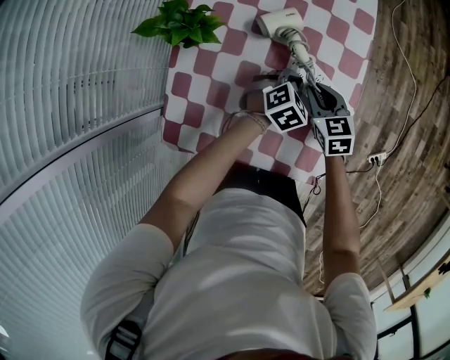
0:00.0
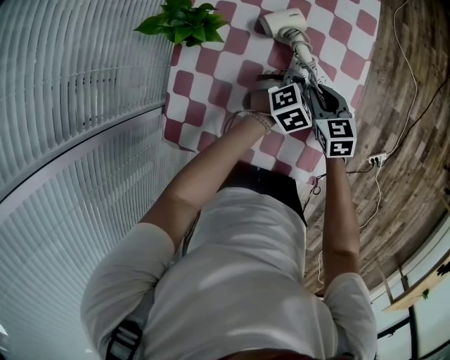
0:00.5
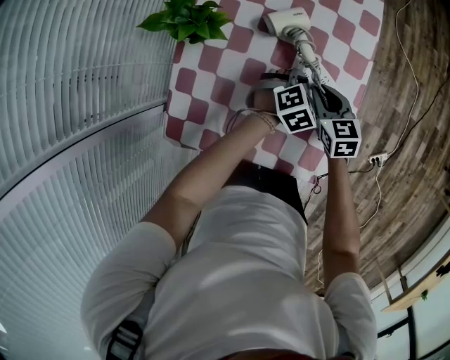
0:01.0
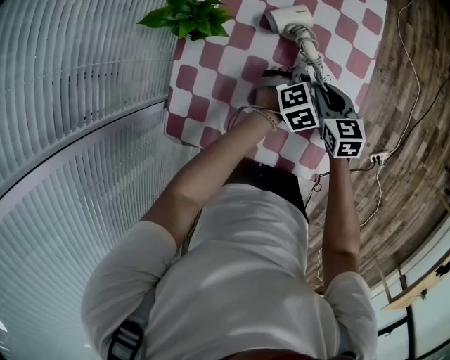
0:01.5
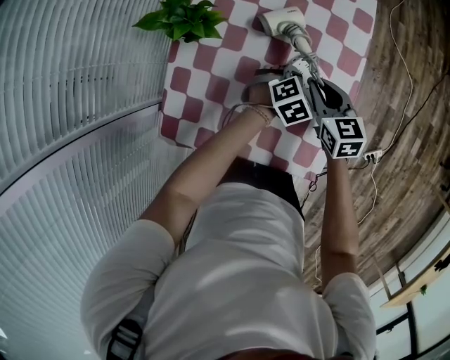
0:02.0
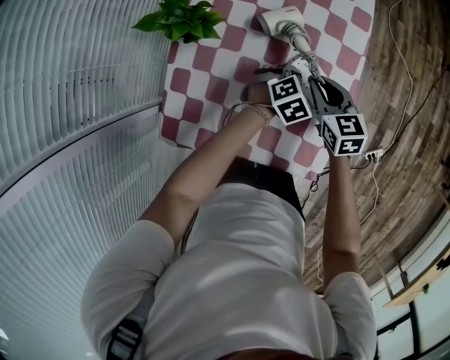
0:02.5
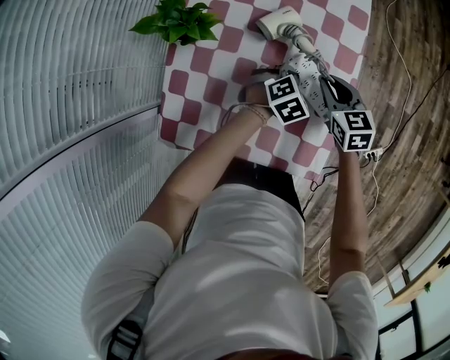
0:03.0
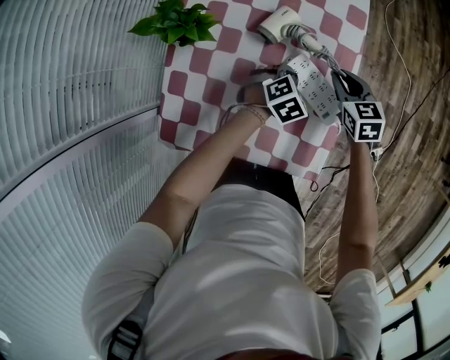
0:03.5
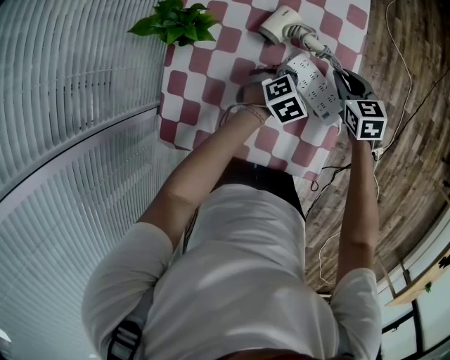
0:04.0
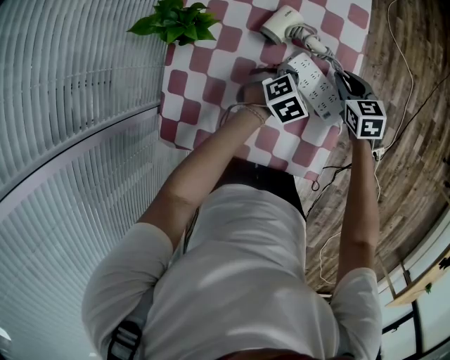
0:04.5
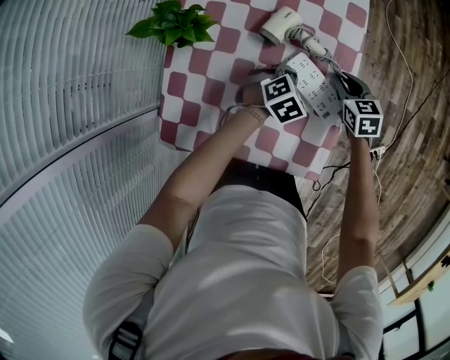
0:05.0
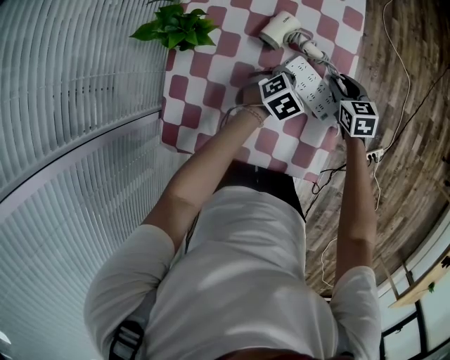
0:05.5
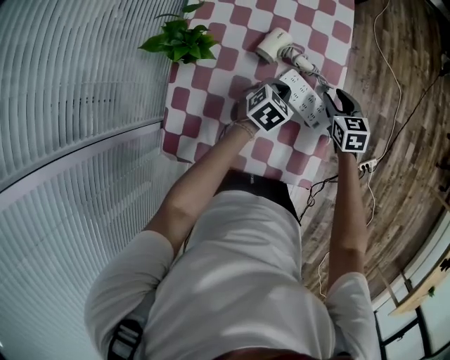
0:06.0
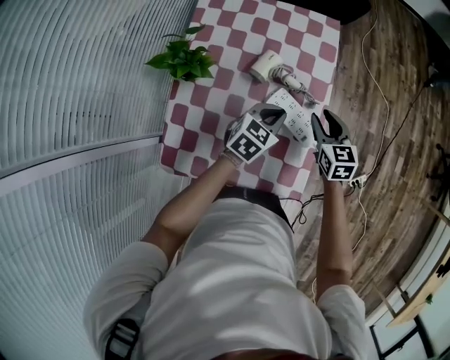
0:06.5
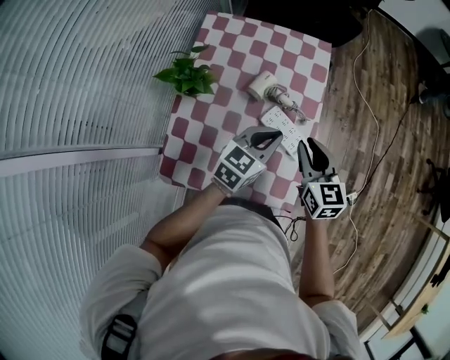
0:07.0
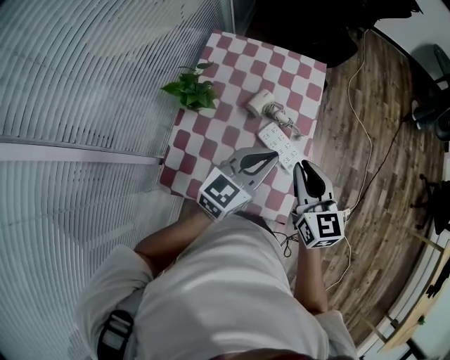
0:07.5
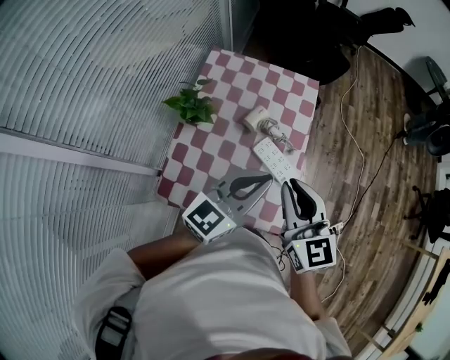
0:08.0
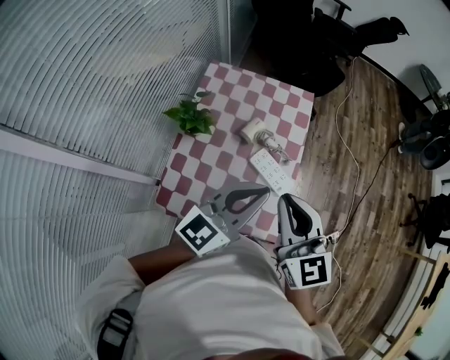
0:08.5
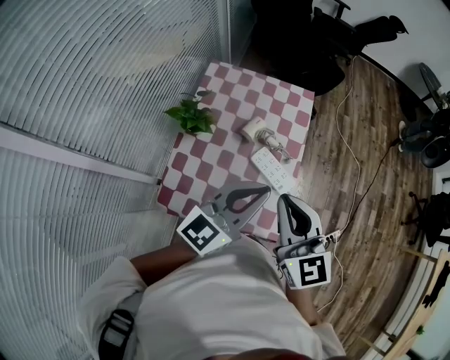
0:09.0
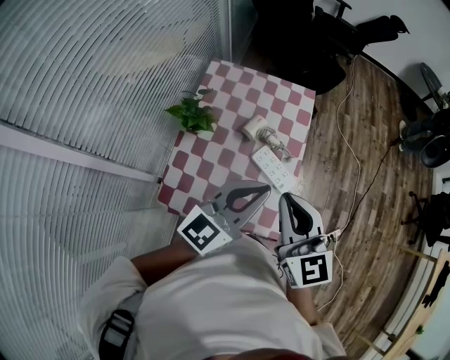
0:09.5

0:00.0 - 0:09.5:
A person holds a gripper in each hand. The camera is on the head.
0:00.0 - 0:02.0: The right gripper shifts roughly 5 cm upward.
0:02.0 - 0:04.0: The right gripper moves to the right and forward, about 10 cm.
0:04.0 - 0:05.5: The grippers stay close to where they were, moving slightly.
0:05.5 - 0:07.5: The left gripper is displaced upward by approximately 35 cm, and tips its fingers upward by approximately 50 degrees; the right gripper moves upward and backward, approximately 35 cm, and turns by about 30 degrees.
0:07.5 - 0:09.5: The two grippers go about 15 cm upward and backward.

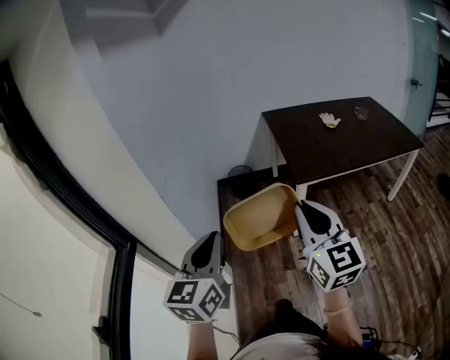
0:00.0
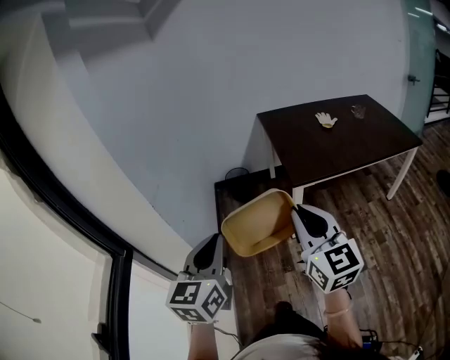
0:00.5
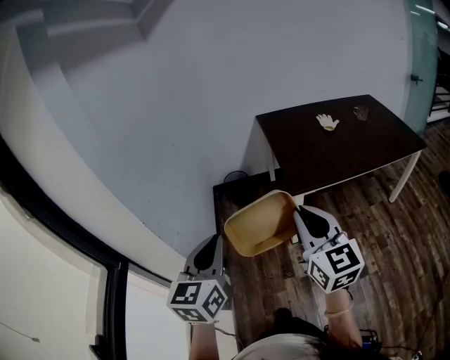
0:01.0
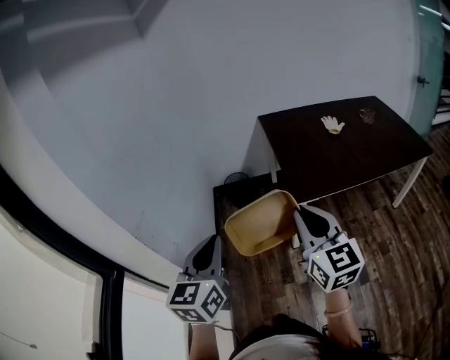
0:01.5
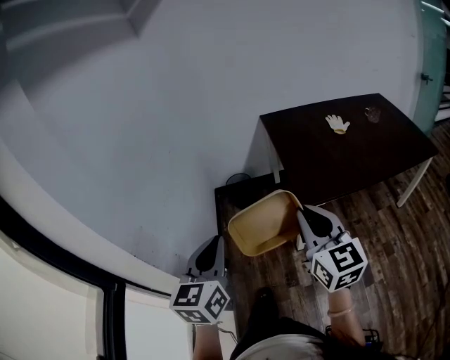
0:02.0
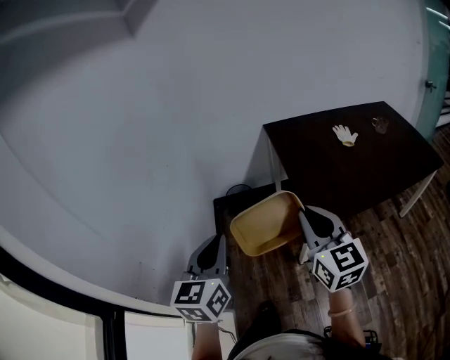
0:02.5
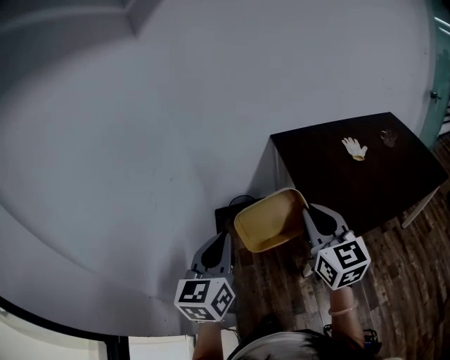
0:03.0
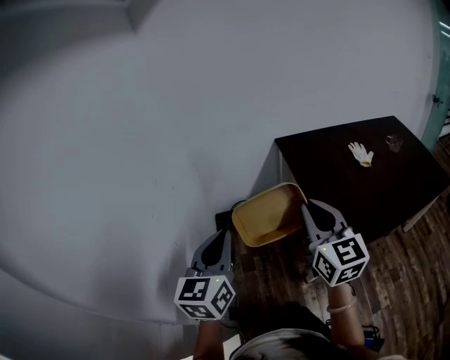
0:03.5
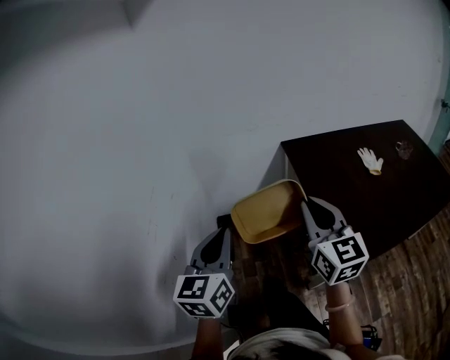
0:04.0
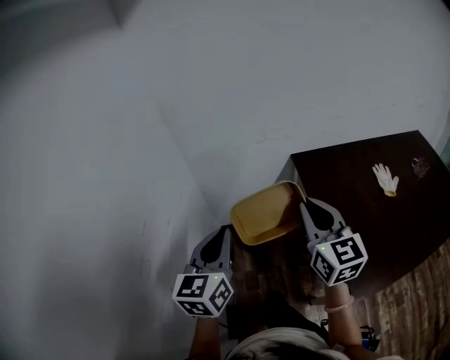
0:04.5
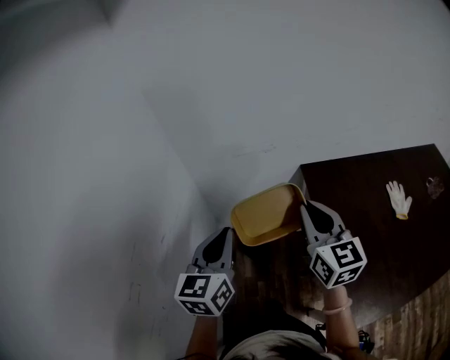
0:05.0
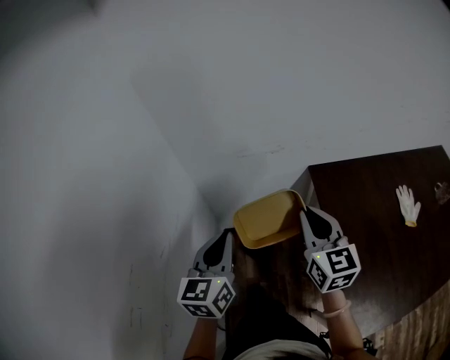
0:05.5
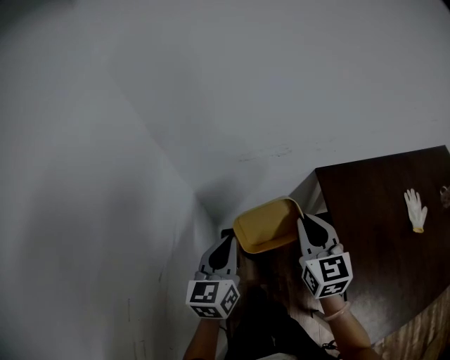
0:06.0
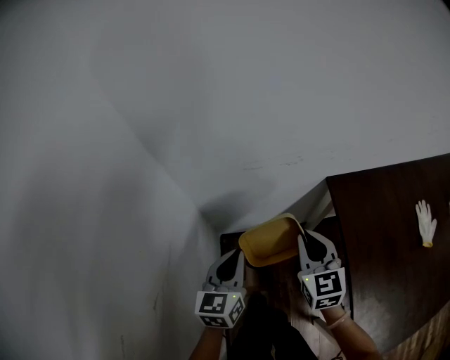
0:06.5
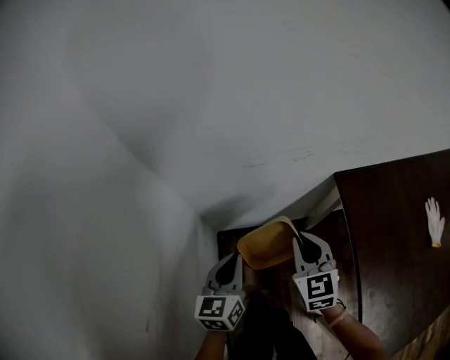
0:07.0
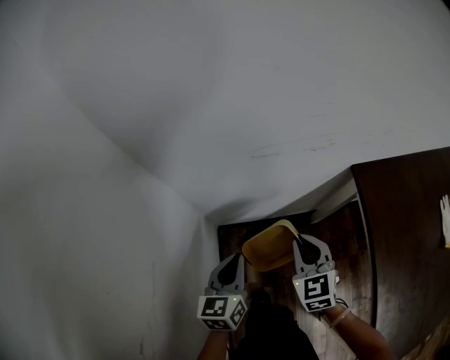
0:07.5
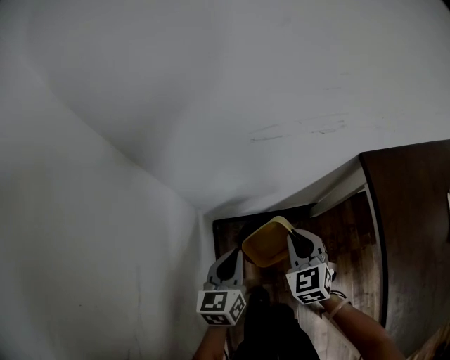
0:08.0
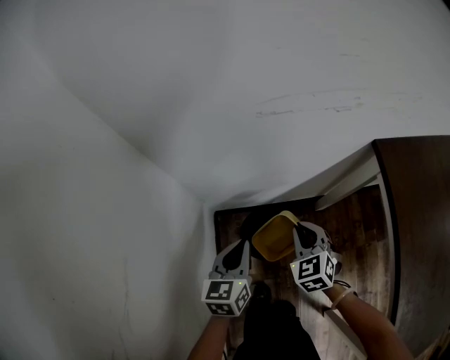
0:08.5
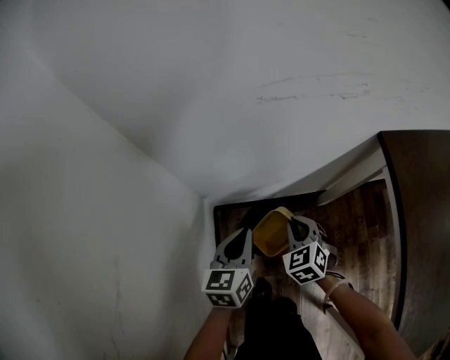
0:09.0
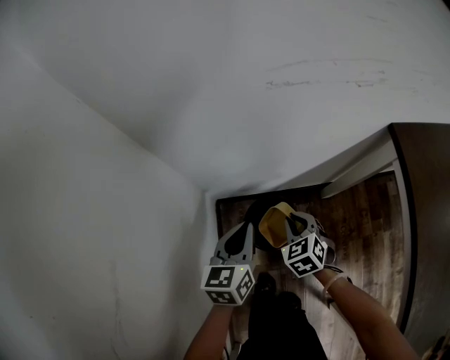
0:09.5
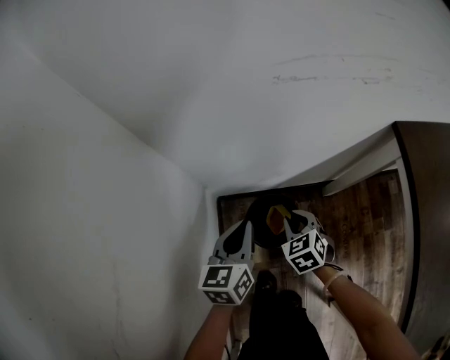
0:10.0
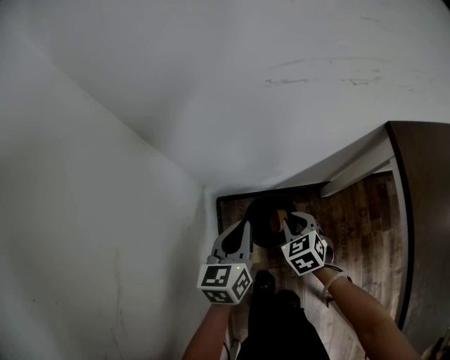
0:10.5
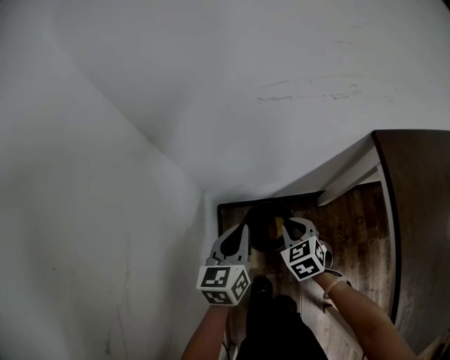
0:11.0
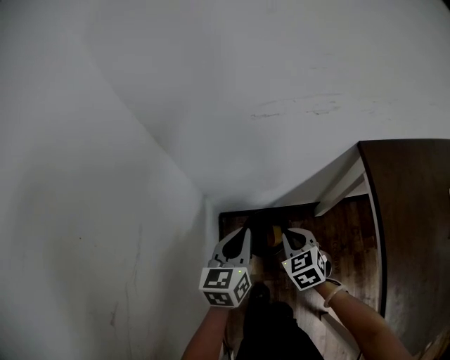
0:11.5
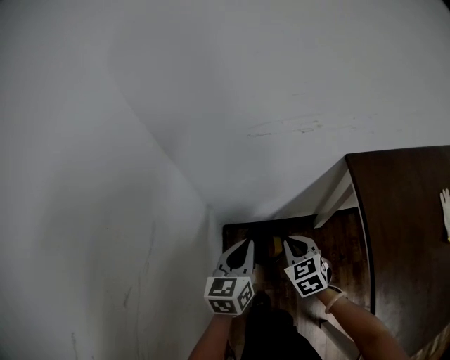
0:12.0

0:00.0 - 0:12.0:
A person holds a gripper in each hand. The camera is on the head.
0:00.0 - 0:02.0: The two grippers go approximately 20 cm forward.
0:02.0 - 0:04.0: Both grippers travel together forward, approximately 40 cm.
0:04.0 - 0:06.0: Both grippers are carried forward, roughly 40 cm.
0:06.0 - 0:08.0: The left gripper travels downward and forward by roughly 35 cm, while the right gripper moves downward, roughly 35 cm, and turns by about 30 degrees.
0:08.0 - 0:10.0: The right gripper heads downward, covering roughly 20 cm; the left gripper travels downward by roughly 10 cm.
0:10.0 - 0:12.0: Both grippers move upward and backward, roughly 20 cm.

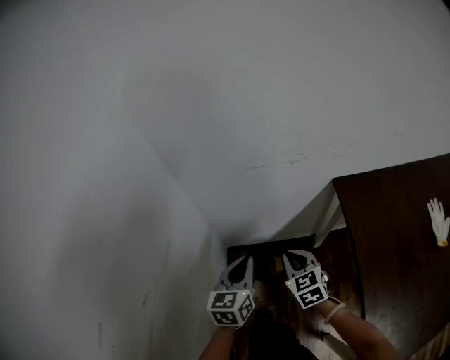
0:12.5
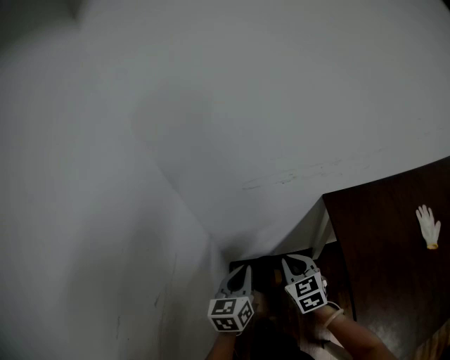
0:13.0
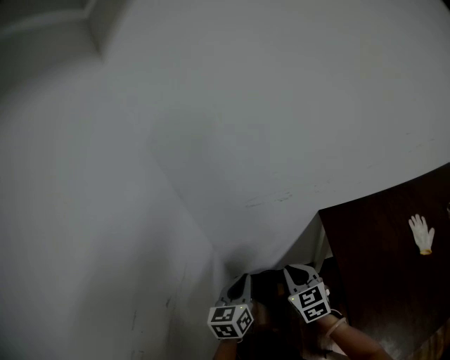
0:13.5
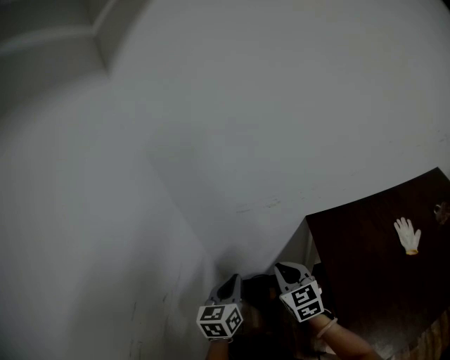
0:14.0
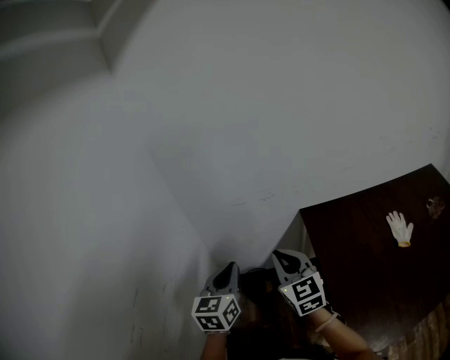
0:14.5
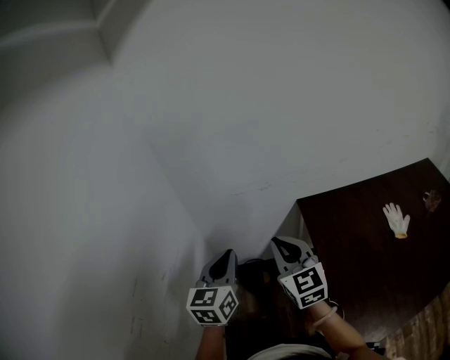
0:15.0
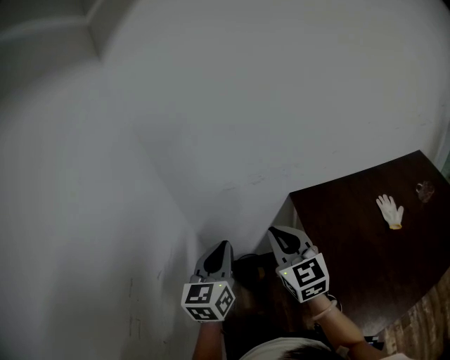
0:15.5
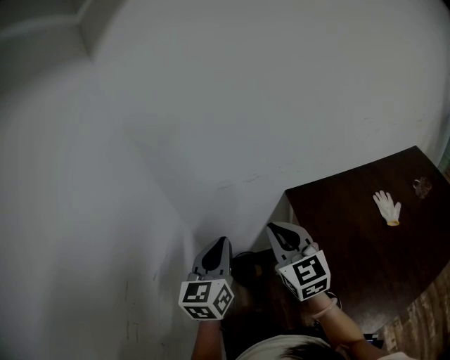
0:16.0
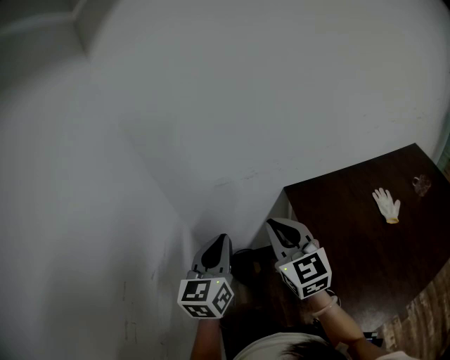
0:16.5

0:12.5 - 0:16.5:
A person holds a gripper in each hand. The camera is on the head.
0:12.5 - 0:14.5: Both grippers move upward and backward, roughly 30 cm. The right gripper changes its angle by some 30 degrees.
0:14.5 - 0:16.5: Both grippers travel together upward, about 5 cm.

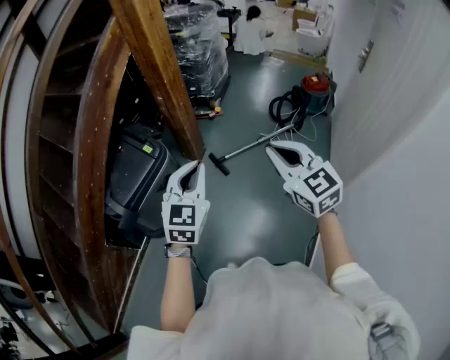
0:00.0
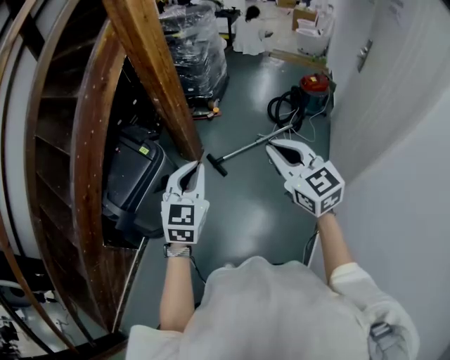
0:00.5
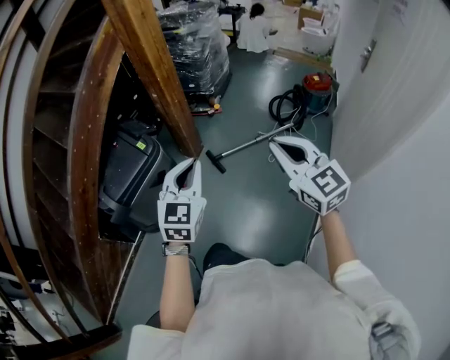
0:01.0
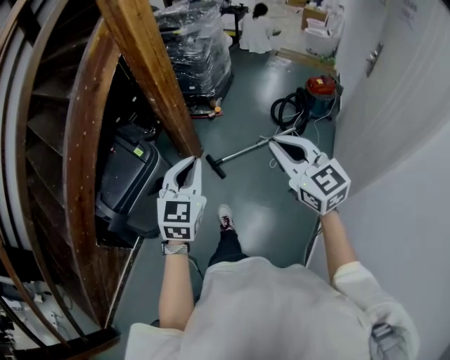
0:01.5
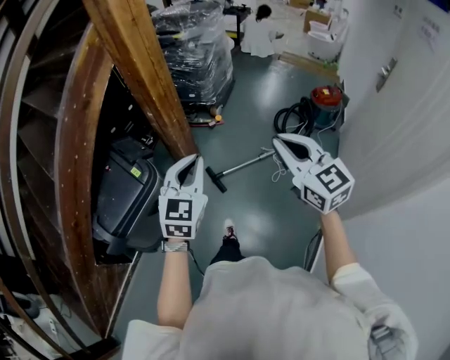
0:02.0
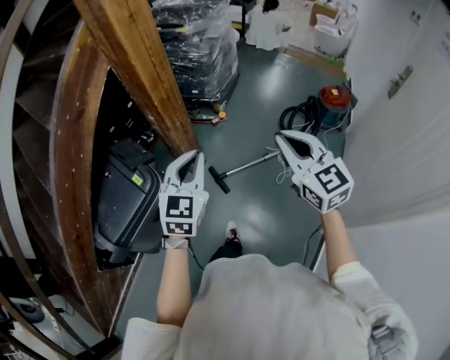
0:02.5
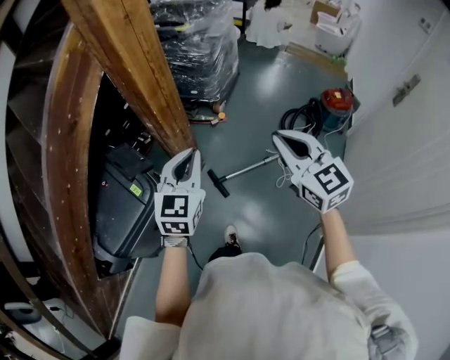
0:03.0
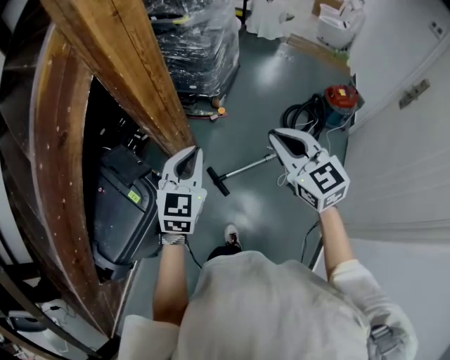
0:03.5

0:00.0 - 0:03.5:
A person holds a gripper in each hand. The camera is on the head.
0:00.0 - 0:02.0: The right gripper travels forward and to the right by some 20 cm. The left gripper shifts roughly 20 cm forward.
0:02.0 - 0:03.5: The grippers both shift forward by roughly 25 cm.
